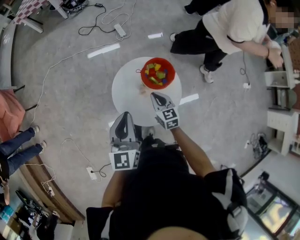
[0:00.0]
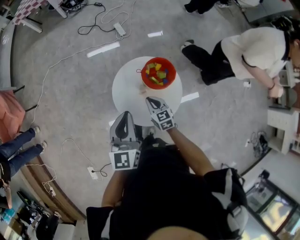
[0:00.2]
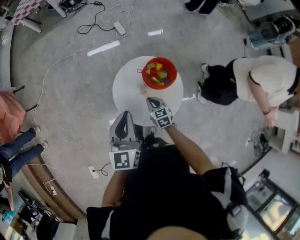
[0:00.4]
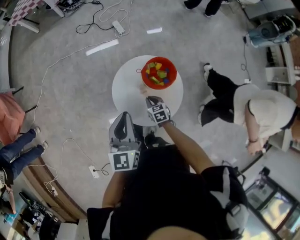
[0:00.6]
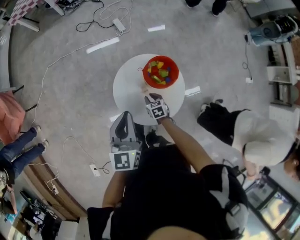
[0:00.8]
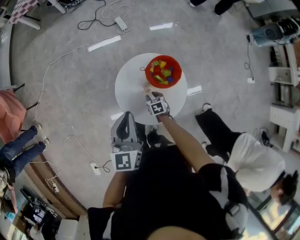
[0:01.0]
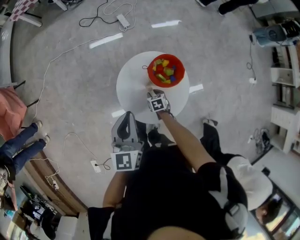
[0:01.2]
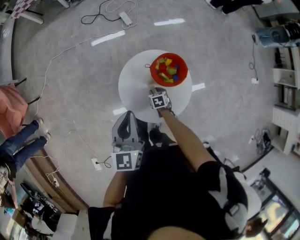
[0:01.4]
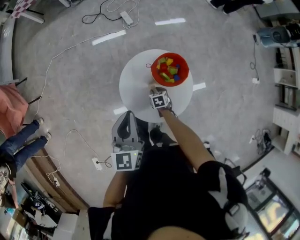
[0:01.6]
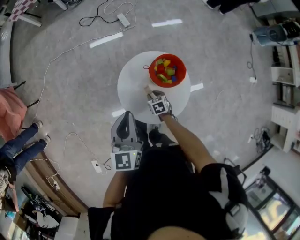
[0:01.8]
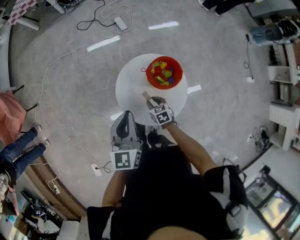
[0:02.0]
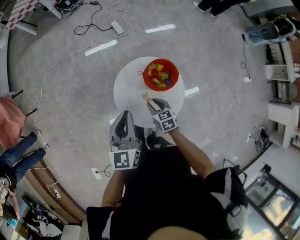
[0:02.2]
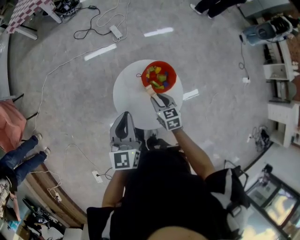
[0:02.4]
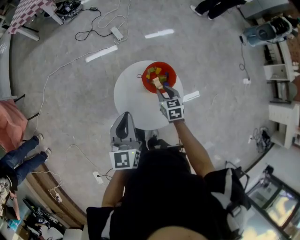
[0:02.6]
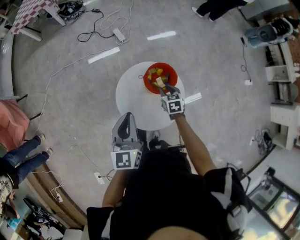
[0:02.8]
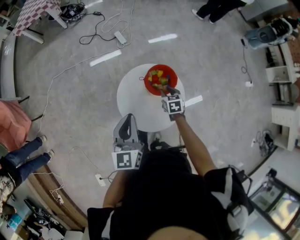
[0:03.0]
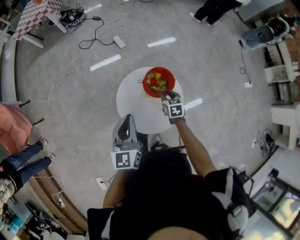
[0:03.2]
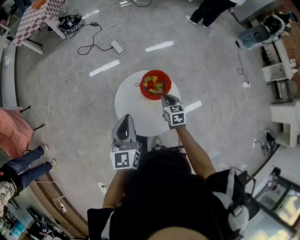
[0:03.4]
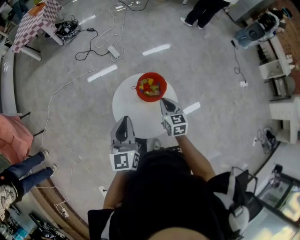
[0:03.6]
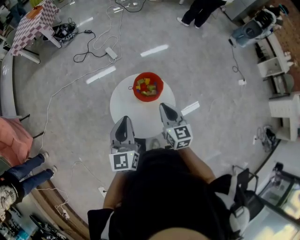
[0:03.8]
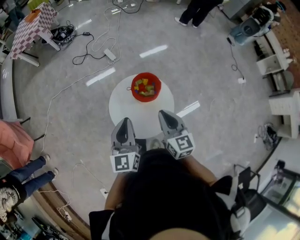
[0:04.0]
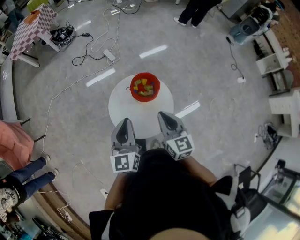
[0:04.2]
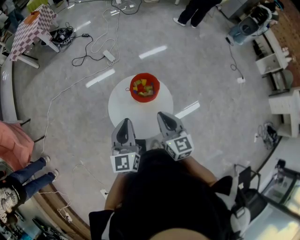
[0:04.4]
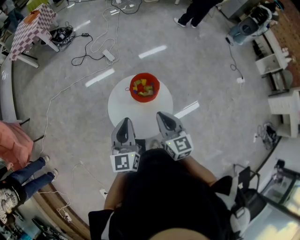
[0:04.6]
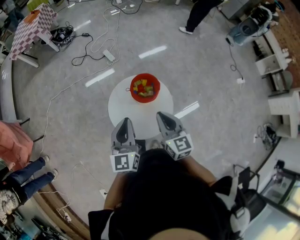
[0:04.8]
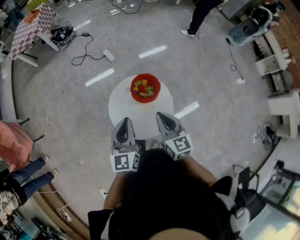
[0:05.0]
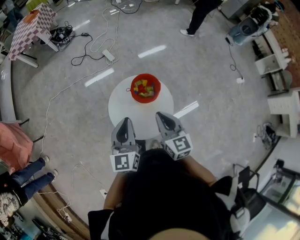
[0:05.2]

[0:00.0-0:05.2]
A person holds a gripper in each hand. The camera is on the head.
0:00.0 to 0:01.8: The right gripper is displaced downward by approximately 20 cm, angles its fingers downward, by some 30 degrees, and opens.
0:01.8 to 0:03.4: The right gripper swings up and down, roughly 20 cm each way, with 2 reversals, changes its angle by some 30 degrees, and closes its fingers. The left gripper changes place by roughly 5 cm.
0:03.4 to 0:05.2: The right gripper heads upward and backward, covering some 20 cm, and swivels some 20 degrees.

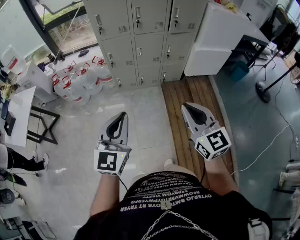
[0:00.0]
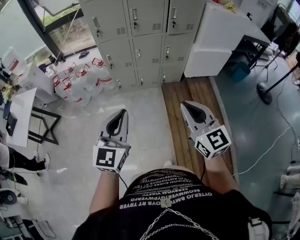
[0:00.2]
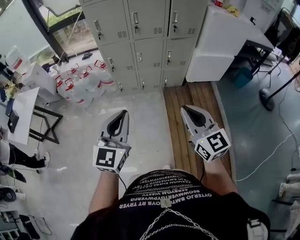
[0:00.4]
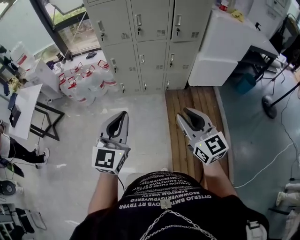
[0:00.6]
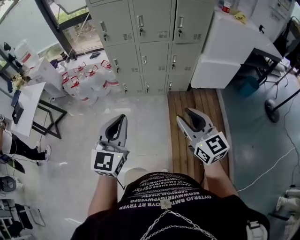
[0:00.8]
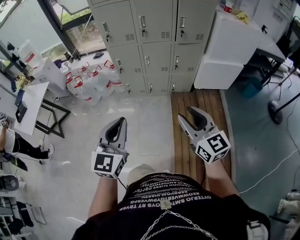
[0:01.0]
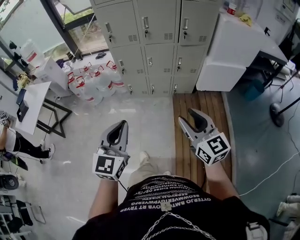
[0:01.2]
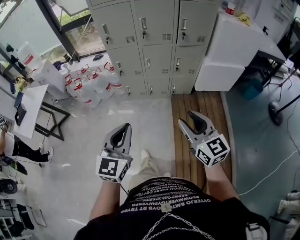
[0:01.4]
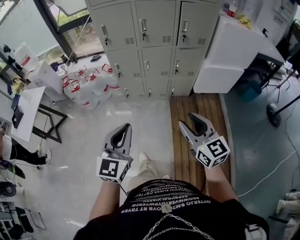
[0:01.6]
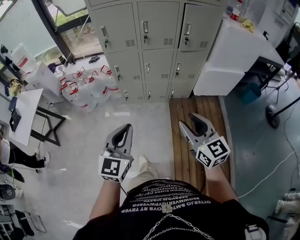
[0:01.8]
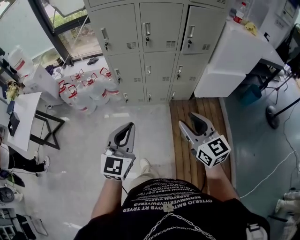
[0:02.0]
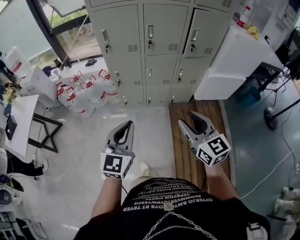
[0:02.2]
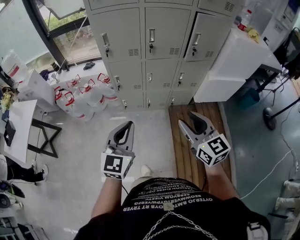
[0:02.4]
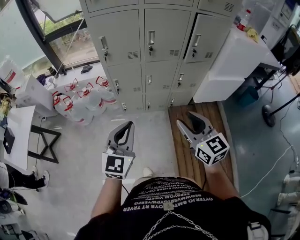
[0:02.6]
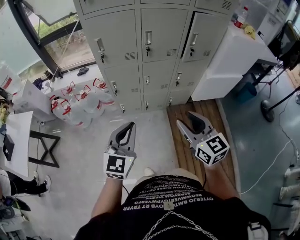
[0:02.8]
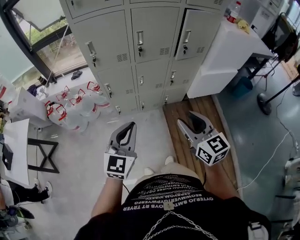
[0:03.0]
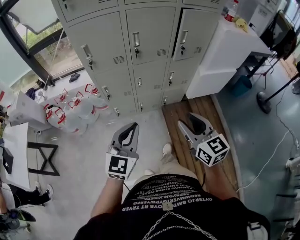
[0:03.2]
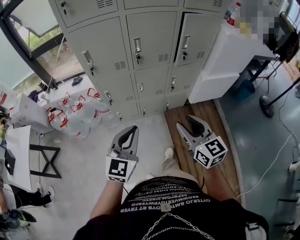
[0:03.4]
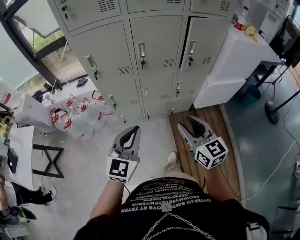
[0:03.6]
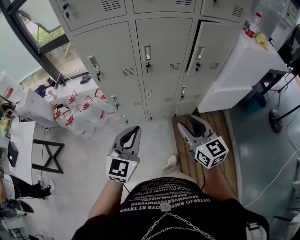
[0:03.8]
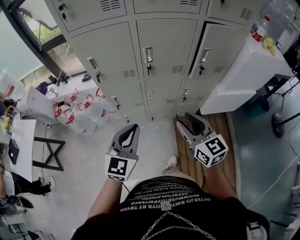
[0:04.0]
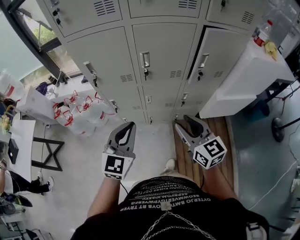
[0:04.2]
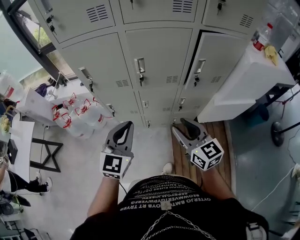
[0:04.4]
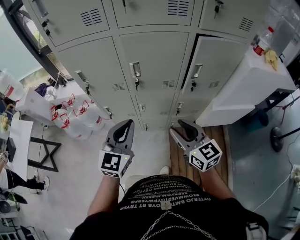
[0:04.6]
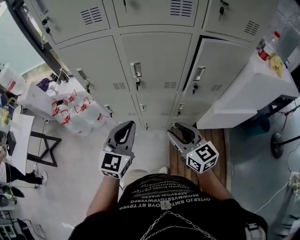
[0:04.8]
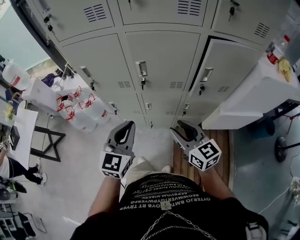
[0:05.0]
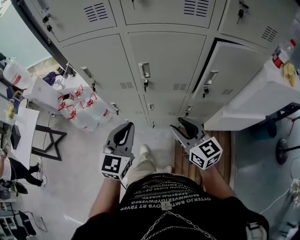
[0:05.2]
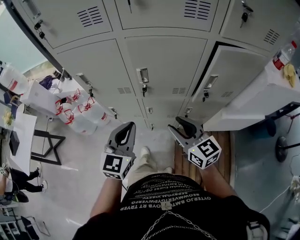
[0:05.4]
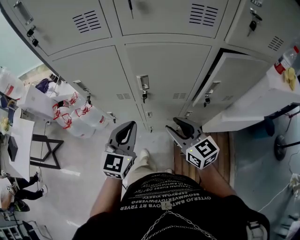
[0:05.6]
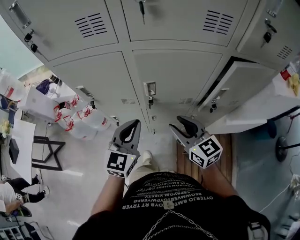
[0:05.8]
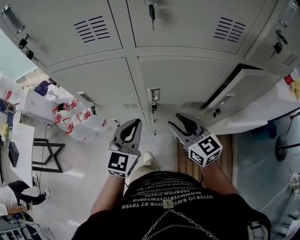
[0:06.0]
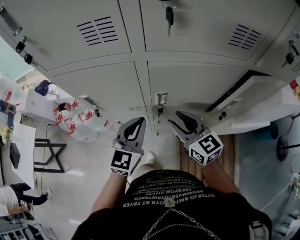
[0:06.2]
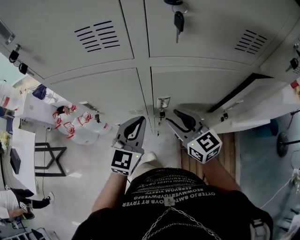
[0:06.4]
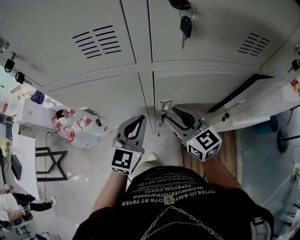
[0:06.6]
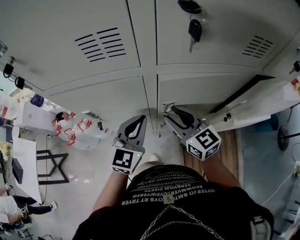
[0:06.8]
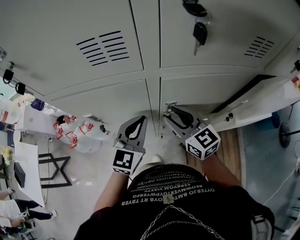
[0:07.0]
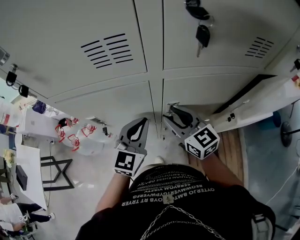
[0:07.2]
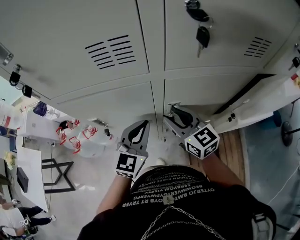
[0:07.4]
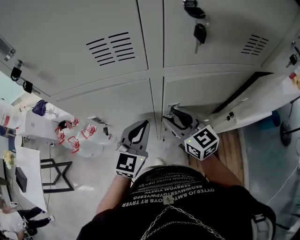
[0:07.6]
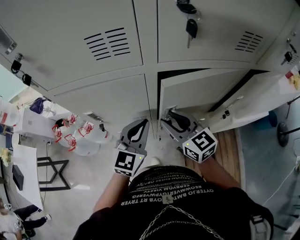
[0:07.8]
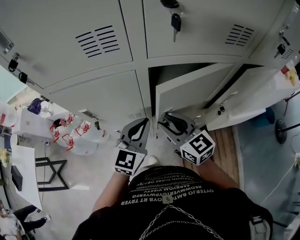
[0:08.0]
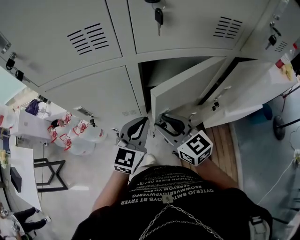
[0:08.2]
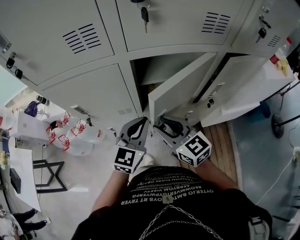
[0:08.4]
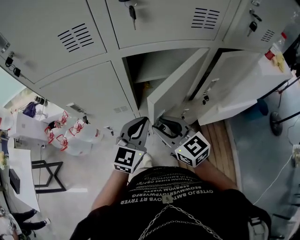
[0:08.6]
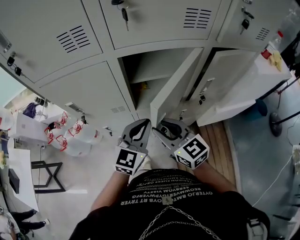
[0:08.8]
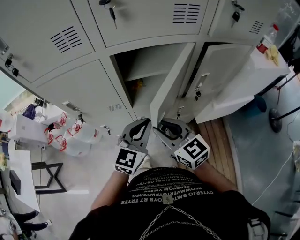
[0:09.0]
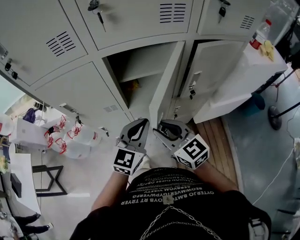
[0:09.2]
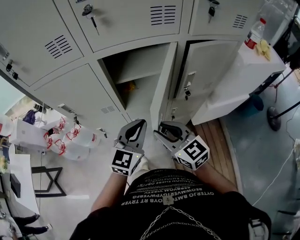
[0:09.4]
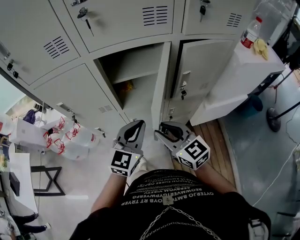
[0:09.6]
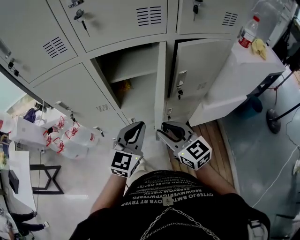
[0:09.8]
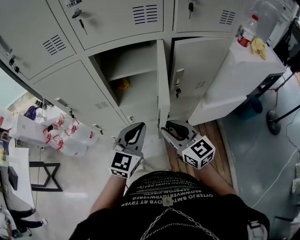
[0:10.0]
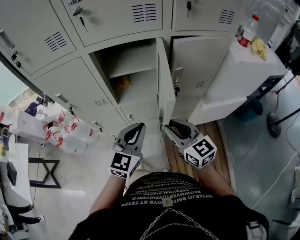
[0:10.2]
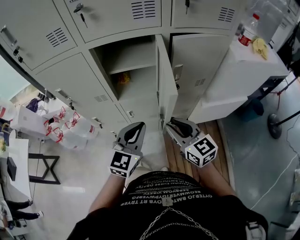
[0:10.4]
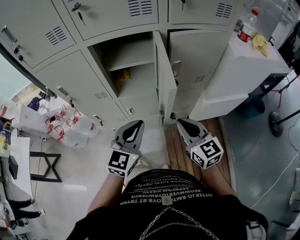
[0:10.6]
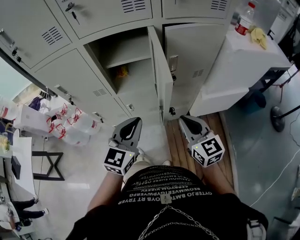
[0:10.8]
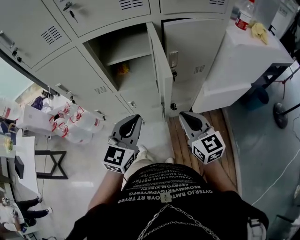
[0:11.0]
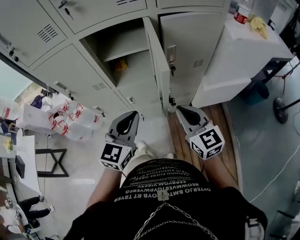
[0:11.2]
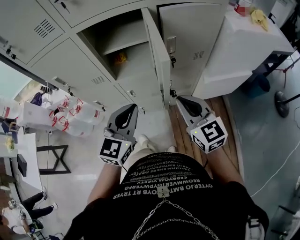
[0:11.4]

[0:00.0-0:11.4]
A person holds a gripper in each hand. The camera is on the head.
0:00.0 to 0:01.4: The left gripper is displaced to the right by roughly 10 cm. The right gripper travels to the right and forward by roughly 10 cm, and opens its fingers.
0:01.4 to 0:02.8: The left gripper moves forward, about 25 cm. Meanwhile the right gripper is displaced forward and to the left by approximately 25 cm.
0:02.8 to 0:04.2: The grippers both shift forward by roughly 20 cm.
0:04.2 to 0:05.6: The grippers both shift forward by about 15 cm.
0:05.6 to 0:07.2: The left gripper is displaced forward by roughly 15 cm. Meanwhile the right gripper is displaced forward and to the left by some 20 cm.
0:07.2 to 0:08.6: The right gripper shifts approximately 15 cm backward; the left gripper heads to the right and backward, covering some 15 cm.
0:08.6 to 0:10.0: Both grippers travel together to the right and backward, about 15 cm.
0:10.0 to 0:11.4: The right gripper heads to the right, covering about 5 cm, and closes its fingers; the left gripper is displaced backward by roughly 5 cm.

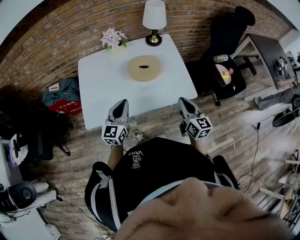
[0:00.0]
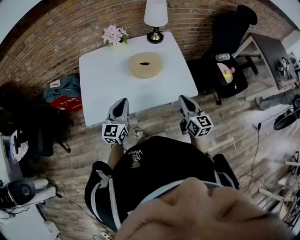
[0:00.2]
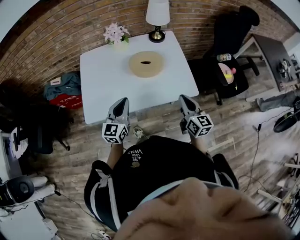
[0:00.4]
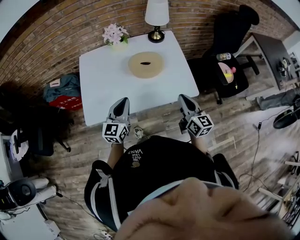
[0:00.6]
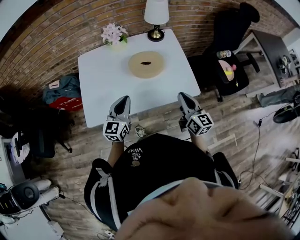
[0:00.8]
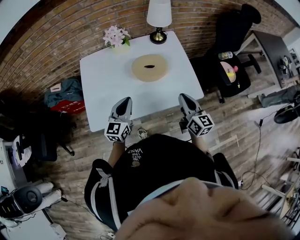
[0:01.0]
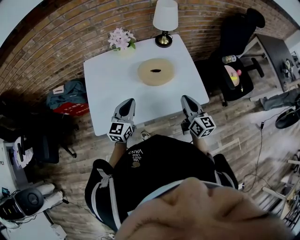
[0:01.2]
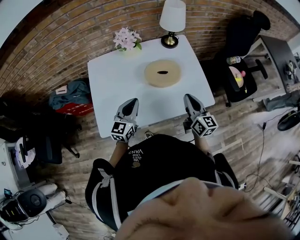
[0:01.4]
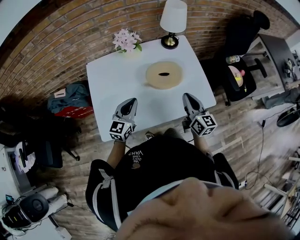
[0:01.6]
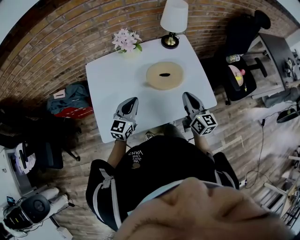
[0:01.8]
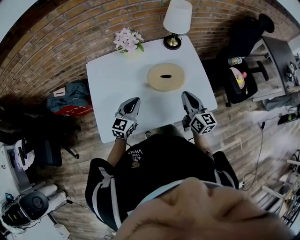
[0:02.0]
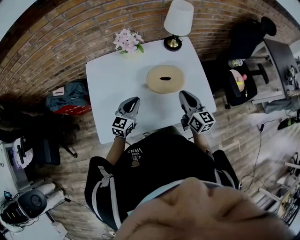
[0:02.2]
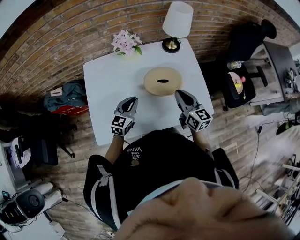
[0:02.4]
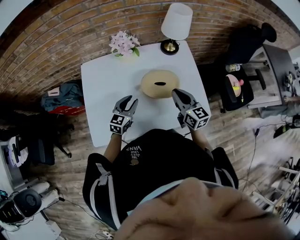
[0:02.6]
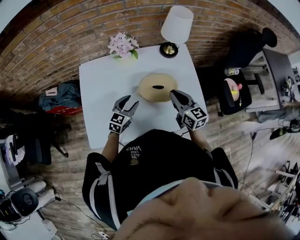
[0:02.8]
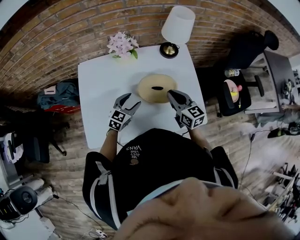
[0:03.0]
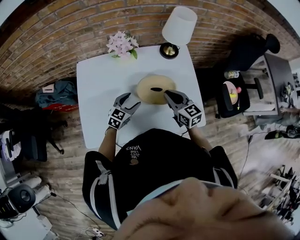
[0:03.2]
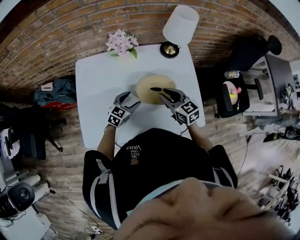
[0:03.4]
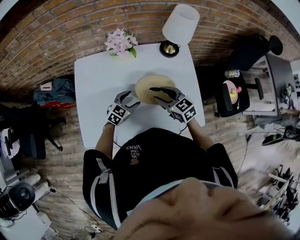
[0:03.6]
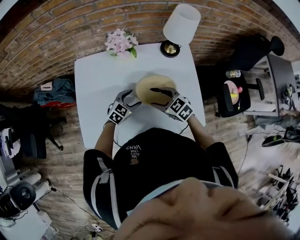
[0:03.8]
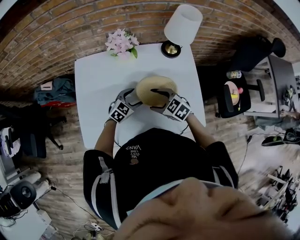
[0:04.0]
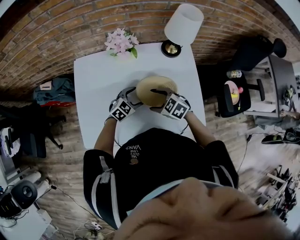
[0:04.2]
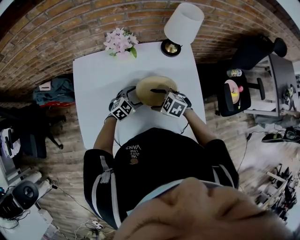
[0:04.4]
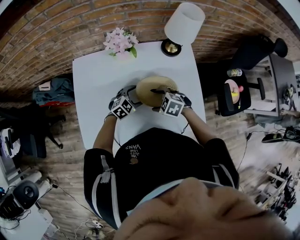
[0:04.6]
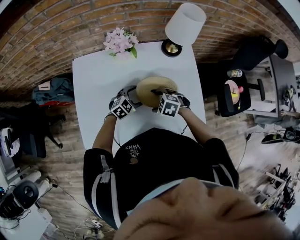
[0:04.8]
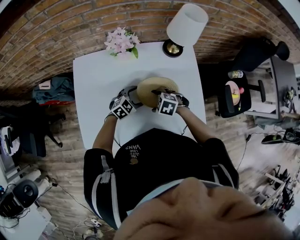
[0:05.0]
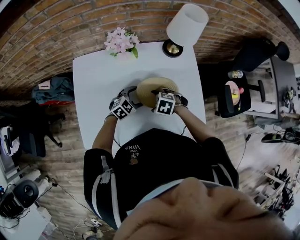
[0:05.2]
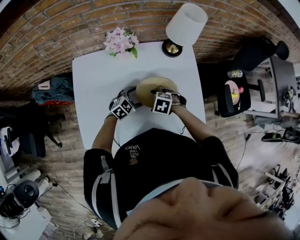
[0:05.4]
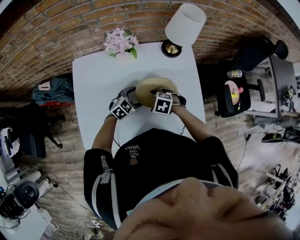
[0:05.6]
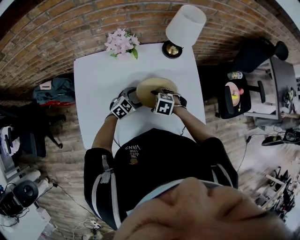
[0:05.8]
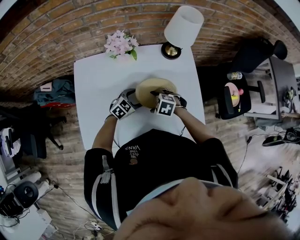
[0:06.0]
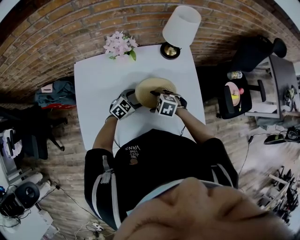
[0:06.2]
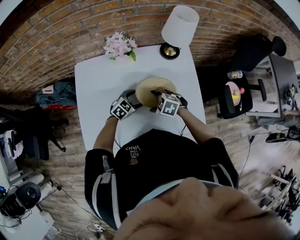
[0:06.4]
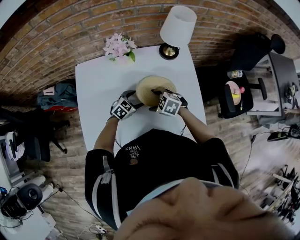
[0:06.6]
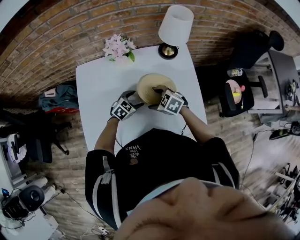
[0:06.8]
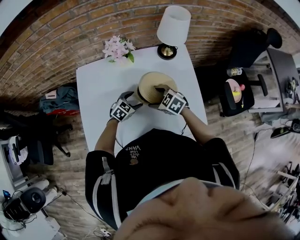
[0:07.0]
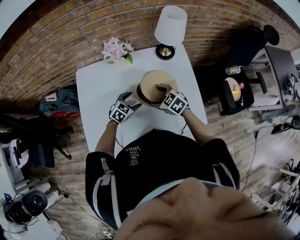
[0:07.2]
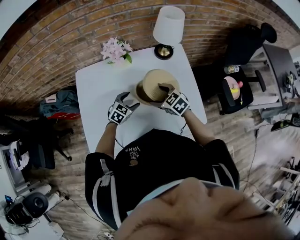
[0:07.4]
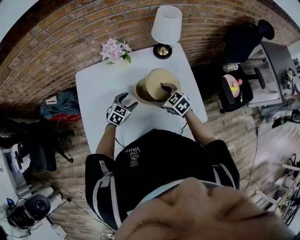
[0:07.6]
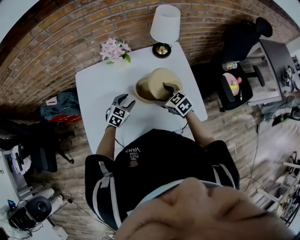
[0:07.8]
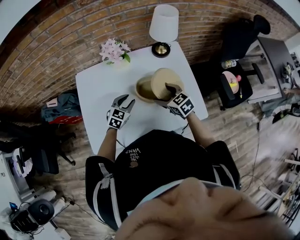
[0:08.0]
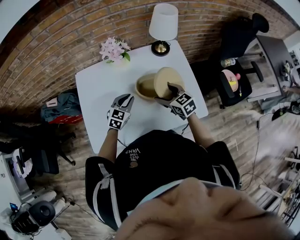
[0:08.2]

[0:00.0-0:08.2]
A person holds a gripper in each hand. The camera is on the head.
0:00.0 to 0:01.6: Both grippers travel together forward and to the left, some 15 cm.
0:01.6 to 0:03.2: The right gripper shifts roughly 15 cm forward, and turns by some 30 degrees, while the left gripper heads downward, forward and to the right, covering roughly 15 cm, and opens up.
0:03.2 to 0:05.0: The left gripper heads downward, covering approximately 5 cm, and swivels about 20 degrees. The right gripper travels downward by some 15 cm, tips its fingers downward by about 50 degrees, and opens.
0:05.0 to 0:06.6: The grippers make only small movements.
0:06.6 to 0:08.2: Both grippers move upward, approximately 10 cm. The left gripper turns by about 20 degrees, and closes. The right gripper turns by roughly 40 degrees.
